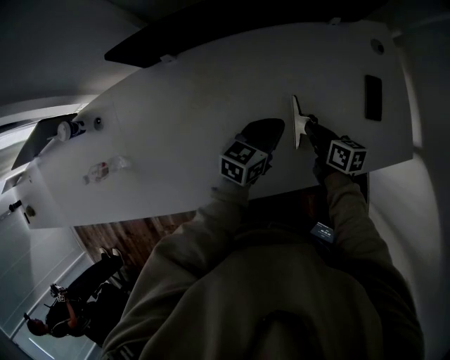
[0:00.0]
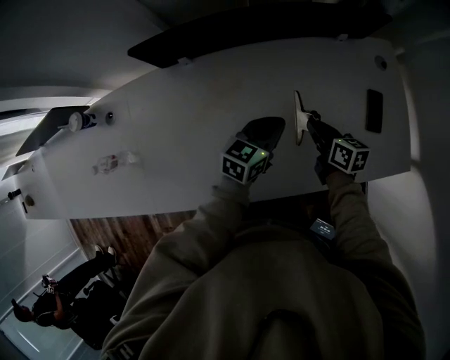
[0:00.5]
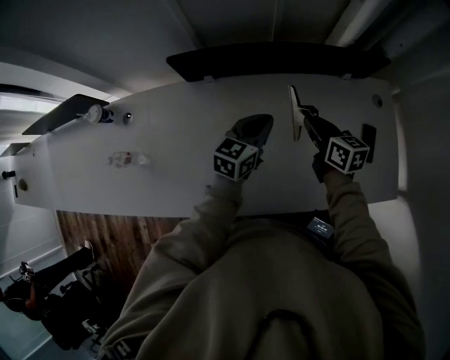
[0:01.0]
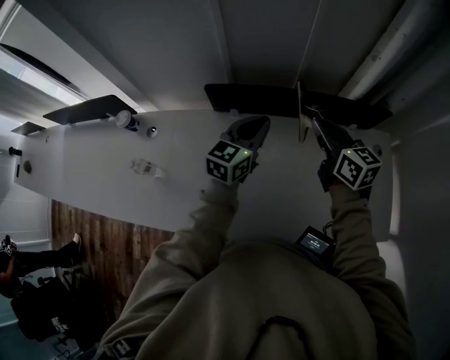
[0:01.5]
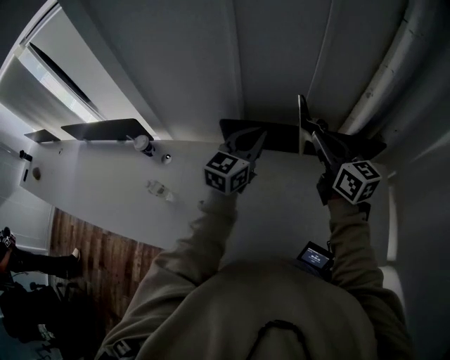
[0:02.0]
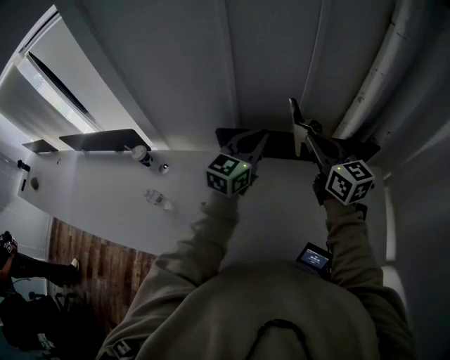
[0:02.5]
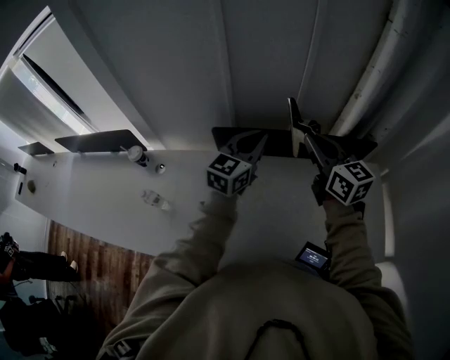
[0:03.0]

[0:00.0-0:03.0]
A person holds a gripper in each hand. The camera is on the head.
0:00.0 to 0:01.5: The right gripper moves upward and to the left, approximately 40 cm, and swivels some 40 degrees. The left gripper goes approximately 35 cm upward, to the left and forward, and turns by about 30 degrees.
0:01.5 to 0:03.0: Both grippers move upward, approximately 10 cm.

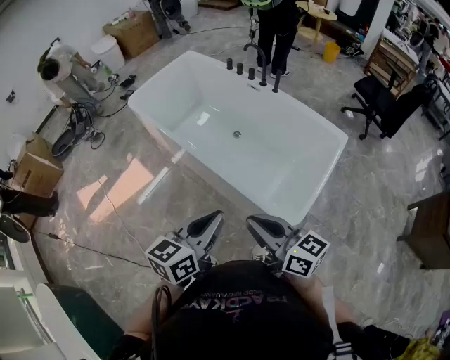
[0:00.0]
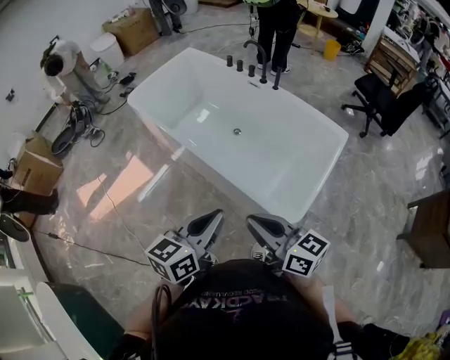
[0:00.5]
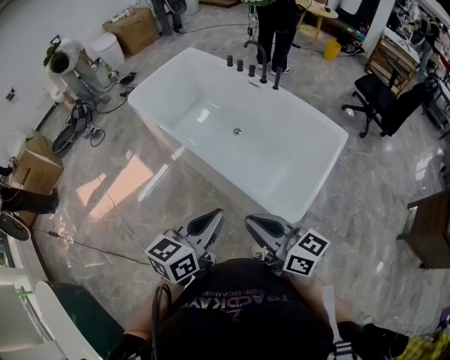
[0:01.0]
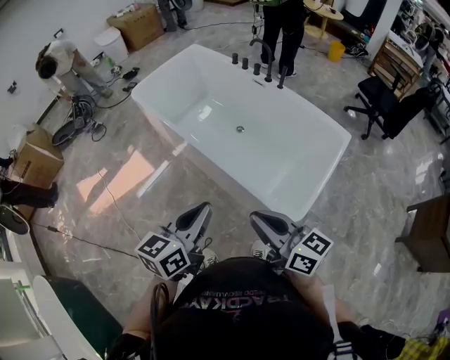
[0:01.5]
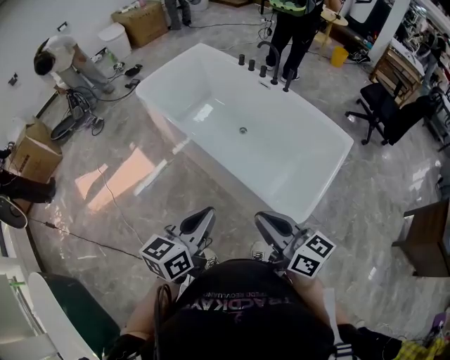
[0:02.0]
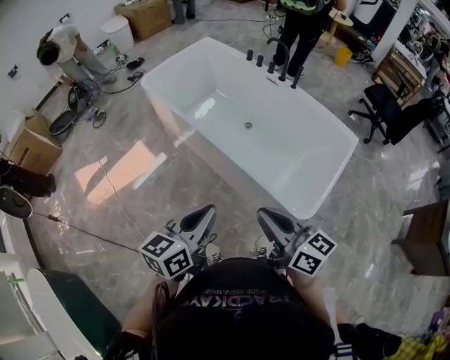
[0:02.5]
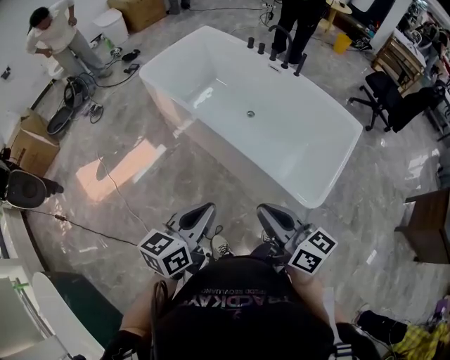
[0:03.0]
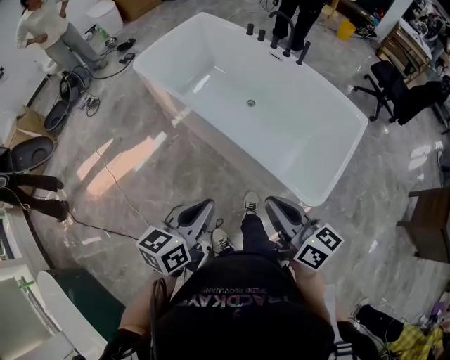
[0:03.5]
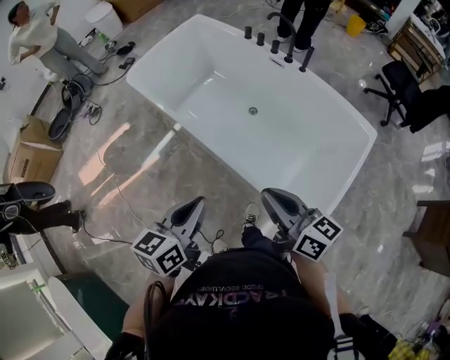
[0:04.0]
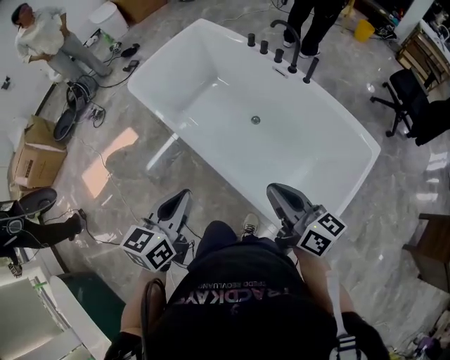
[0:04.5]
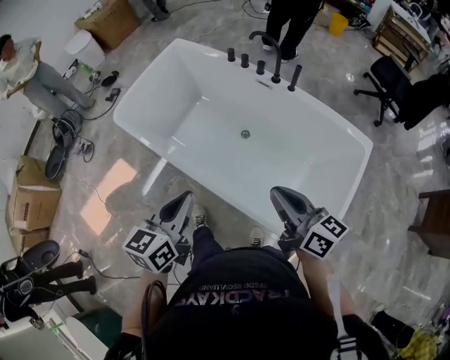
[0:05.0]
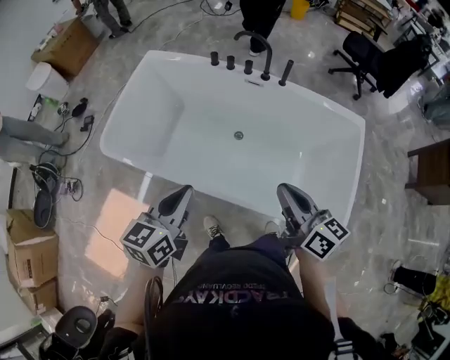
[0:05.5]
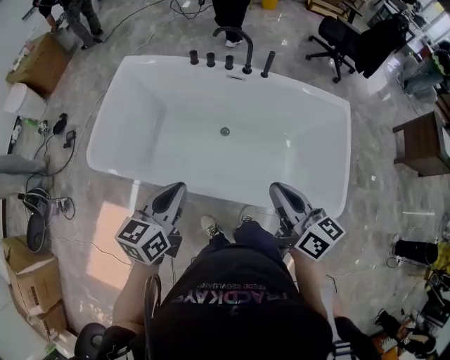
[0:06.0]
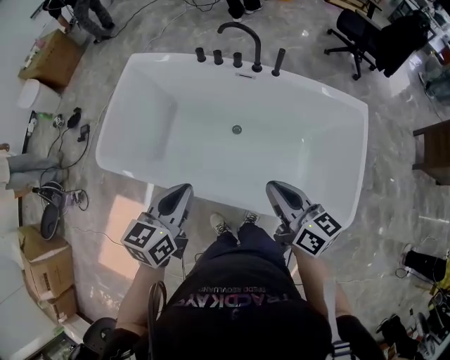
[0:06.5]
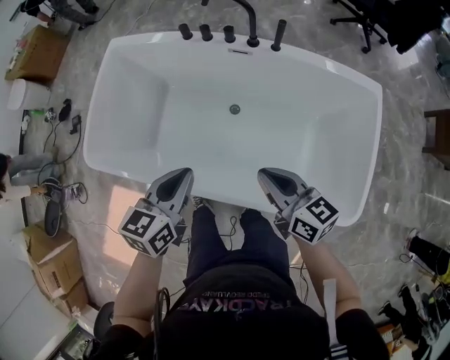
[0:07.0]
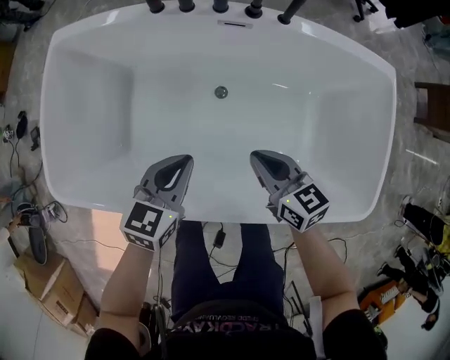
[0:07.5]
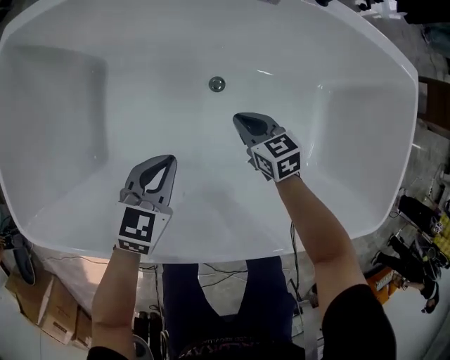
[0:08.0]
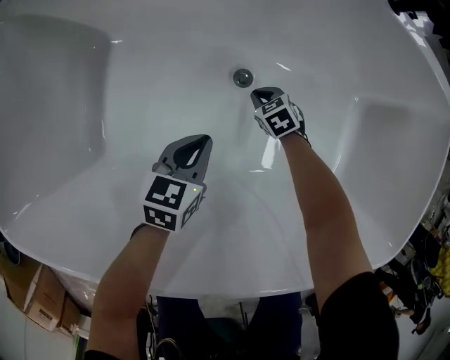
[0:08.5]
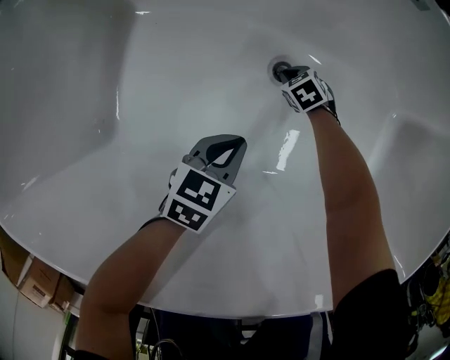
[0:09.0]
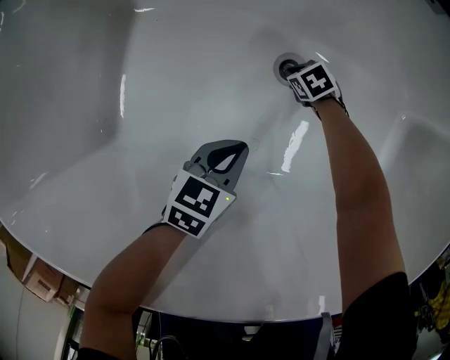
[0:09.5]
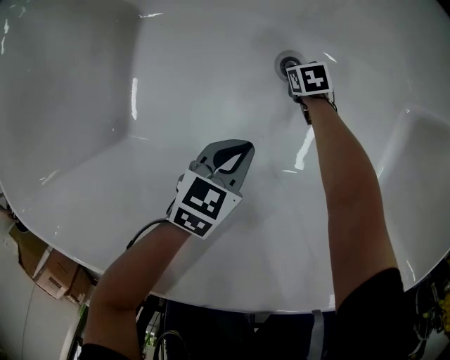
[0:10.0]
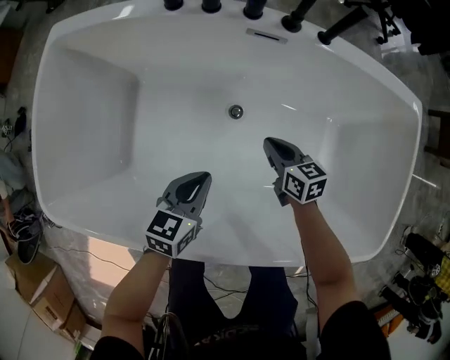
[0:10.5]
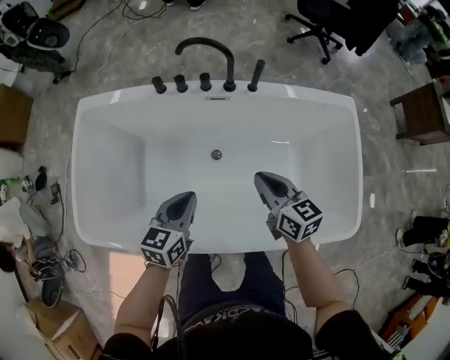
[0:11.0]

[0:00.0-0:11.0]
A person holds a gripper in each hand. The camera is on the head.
0:00.0 to 0:02.0: The left gripper moves to the left, about 5 cm.
0:02.0 to 0:03.5: The right gripper moves roughly 5 cm; the left gripper travels to the left by about 5 cm.
0:03.5 to 0:05.5: The right gripper ends up approximately 30 cm from where it was, and turns by roughly 30 degrees. Meanwhile the left gripper shifts by roughly 40 cm, and swivels about 20 degrees.
0:05.5 to 0:07.5: The right gripper is displaced downward, forward and to the left by some 30 cm, and rotates roughly 30 degrees. Meanwhile the left gripper is displaced downward and forward by roughly 30 cm, and turns by some 30 degrees.
0:07.5 to 0:09.0: The left gripper moves downward, some 35 cm; the right gripper is displaced downward by approximately 50 cm, and tips its fingers downward by about 40 degrees.
0:09.0 to 0:11.0: The left gripper goes about 40 cm upward; the right gripper shifts some 60 cm upward, and tips its fingers upward by approximately 50 degrees.

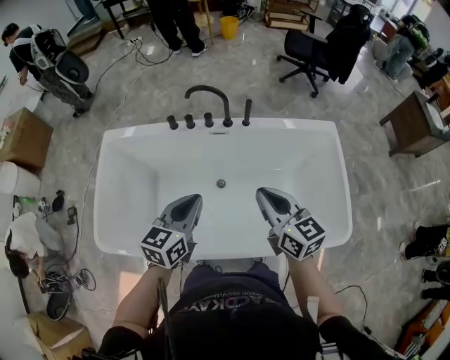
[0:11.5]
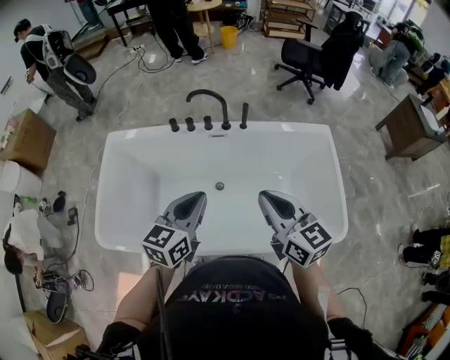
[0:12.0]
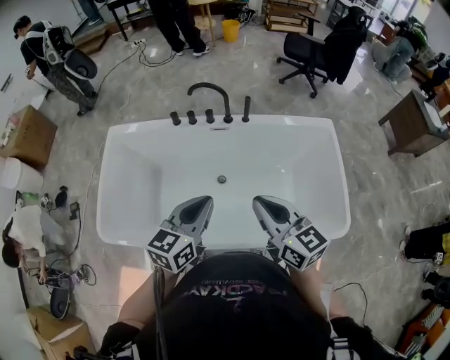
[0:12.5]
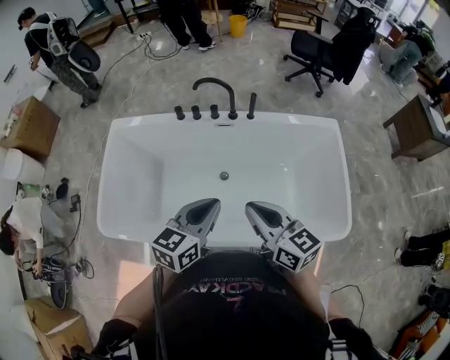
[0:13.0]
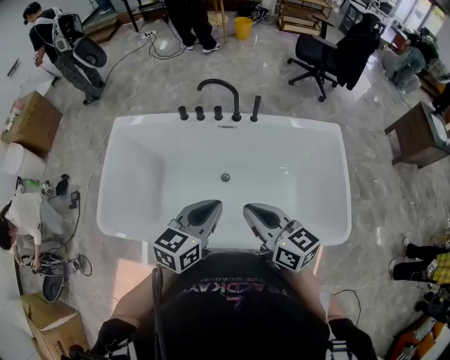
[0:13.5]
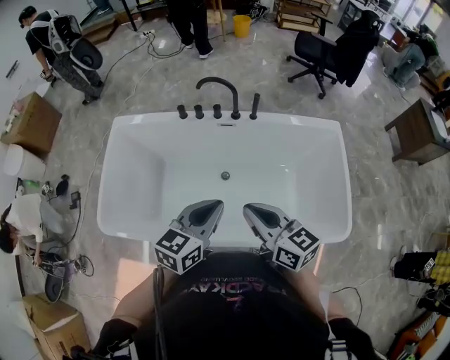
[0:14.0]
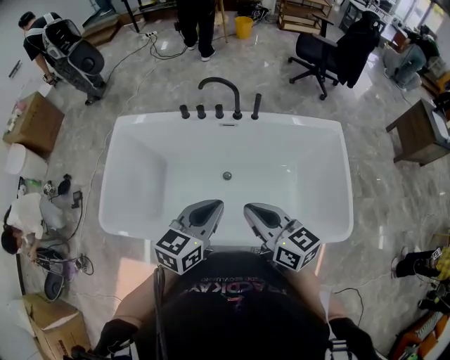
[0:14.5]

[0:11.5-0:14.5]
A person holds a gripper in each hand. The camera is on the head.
0:11.5 to 0:13.0: The grippers both shift backward by some 5 cm.
0:13.0 to 0:14.5: Both grippers stay about where they are.

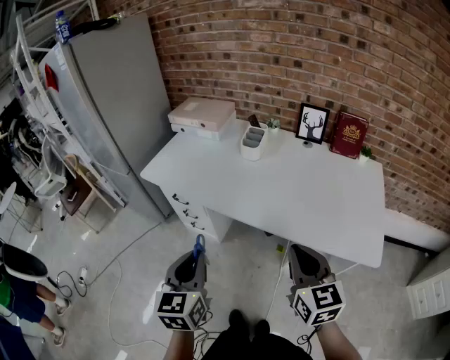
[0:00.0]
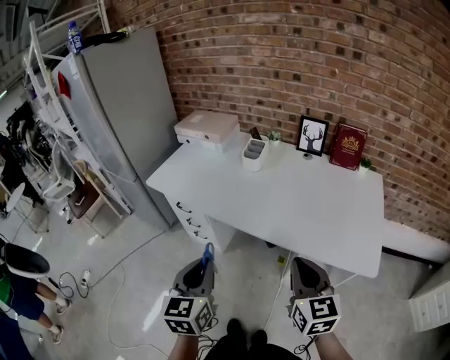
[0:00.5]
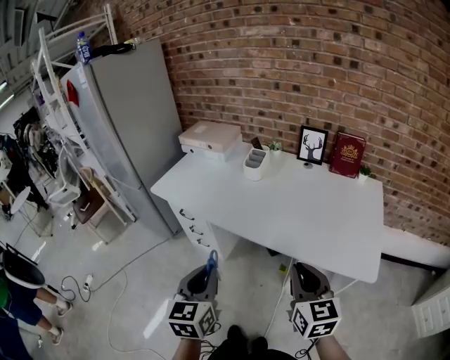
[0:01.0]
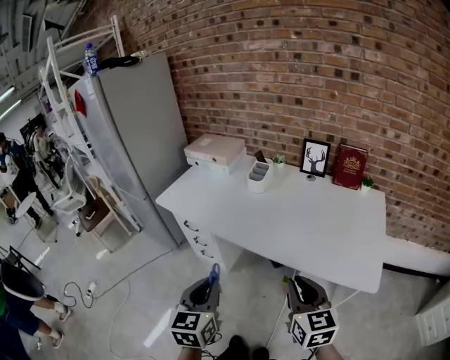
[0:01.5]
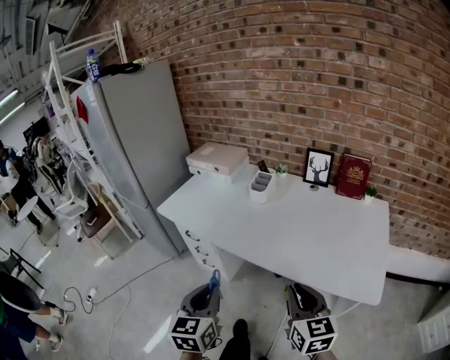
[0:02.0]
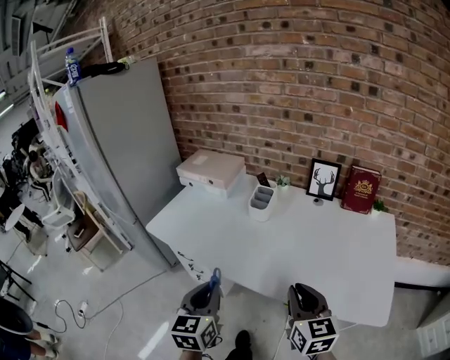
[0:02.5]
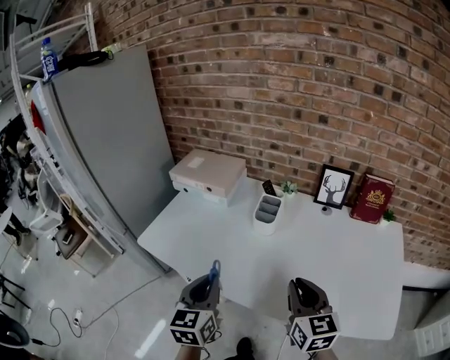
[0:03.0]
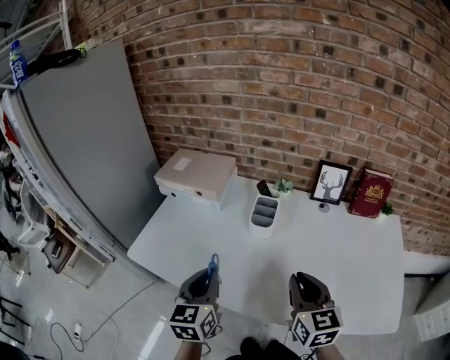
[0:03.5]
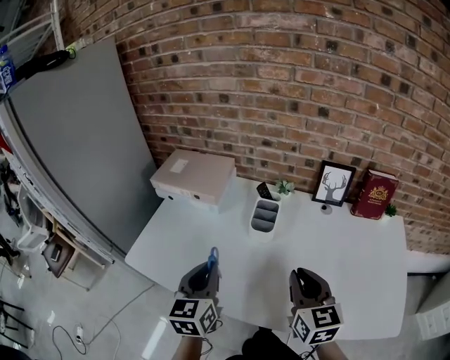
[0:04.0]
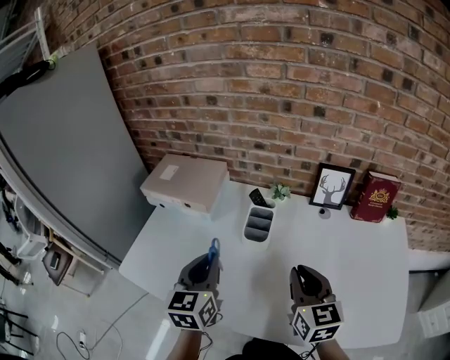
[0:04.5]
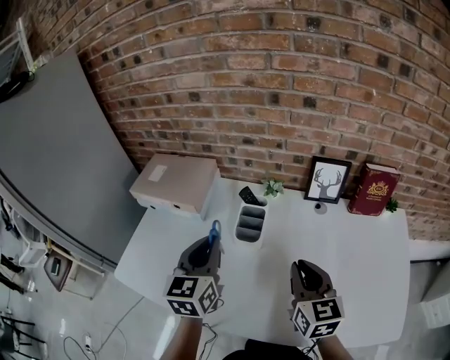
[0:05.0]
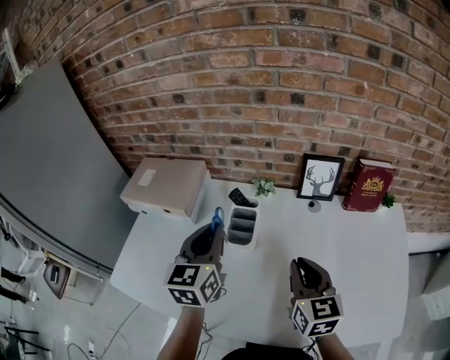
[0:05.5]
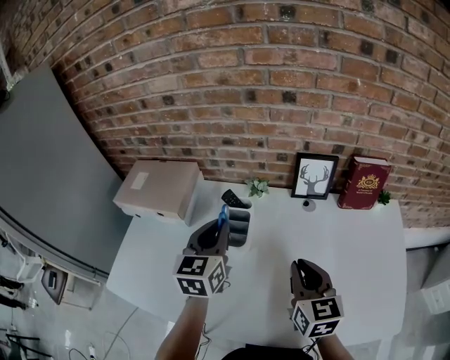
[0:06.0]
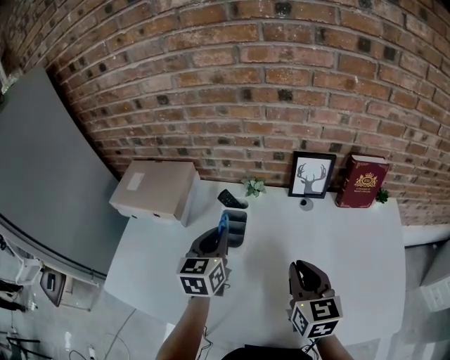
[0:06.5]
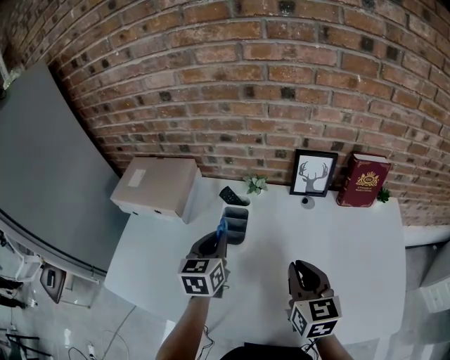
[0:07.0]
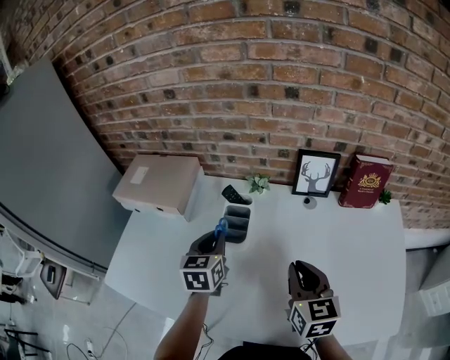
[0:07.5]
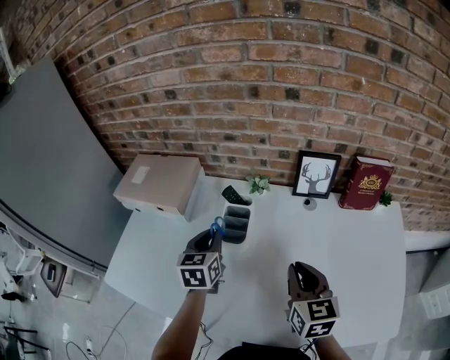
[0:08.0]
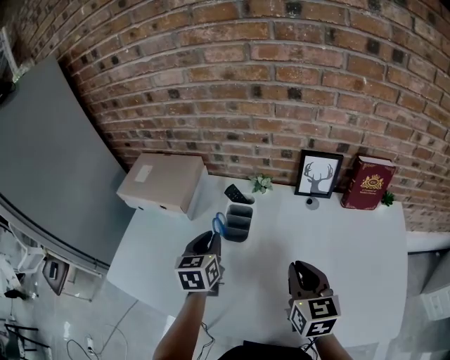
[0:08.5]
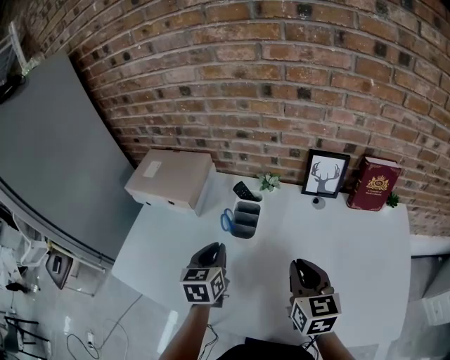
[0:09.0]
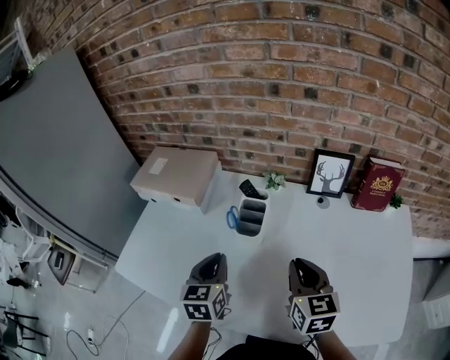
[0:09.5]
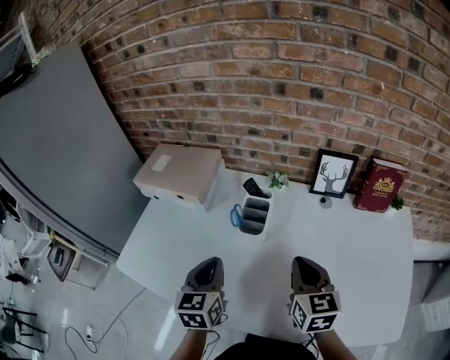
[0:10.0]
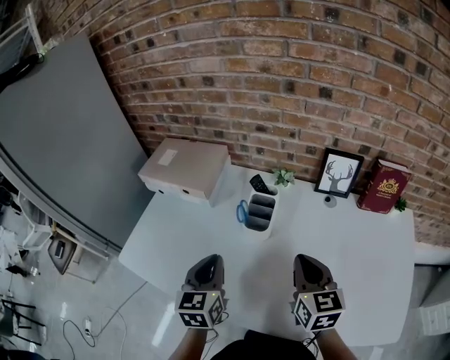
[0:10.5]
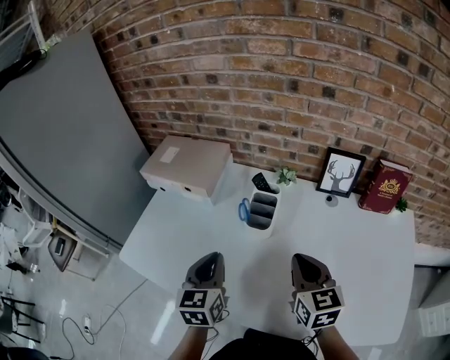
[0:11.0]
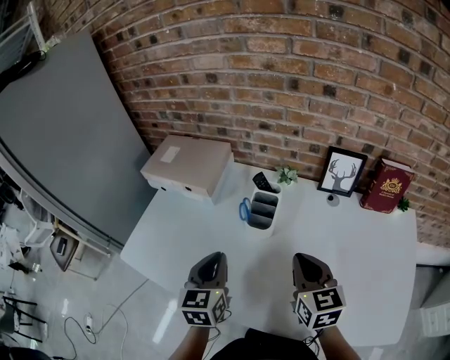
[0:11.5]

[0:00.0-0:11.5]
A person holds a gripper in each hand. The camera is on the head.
0:00.0 to 0:02.0: The right gripper ends up approximately 5 cm from where it was, while the left gripper goes about 5 cm to the right.
0:02.0 to 0:04.0: Both grippers travel together forward, approximately 35 cm.
0:04.0 to 0:06.0: The right gripper is displaced forward and to the right by about 10 cm; the left gripper travels forward and to the right by roughly 25 cm.
0:06.0 to 0:07.5: The left gripper goes roughly 10 cm downward.
0:07.5 to 0:09.5: The left gripper moves backward, some 10 cm.
0:09.5 to 0:11.5: The grippers move only a little.
